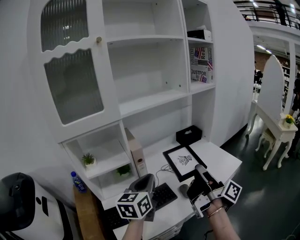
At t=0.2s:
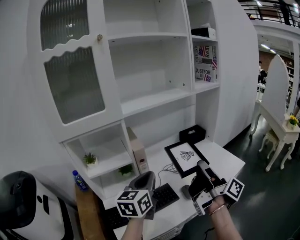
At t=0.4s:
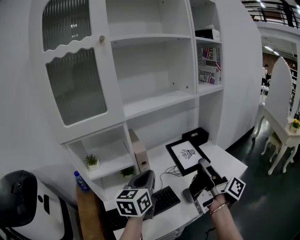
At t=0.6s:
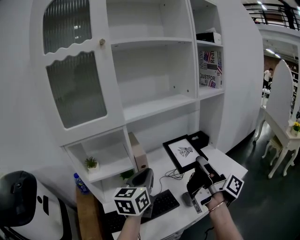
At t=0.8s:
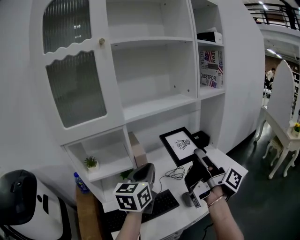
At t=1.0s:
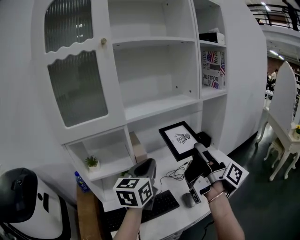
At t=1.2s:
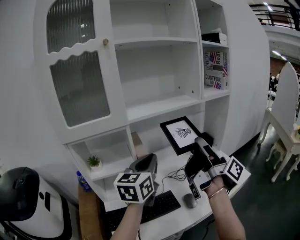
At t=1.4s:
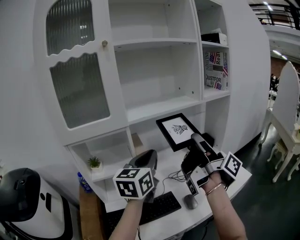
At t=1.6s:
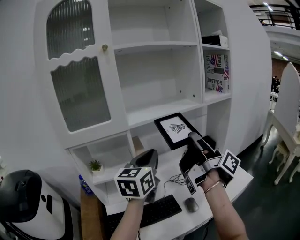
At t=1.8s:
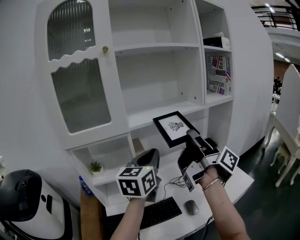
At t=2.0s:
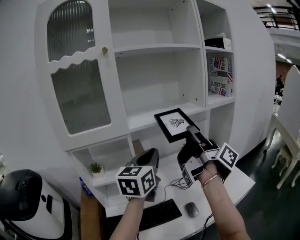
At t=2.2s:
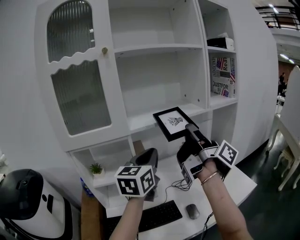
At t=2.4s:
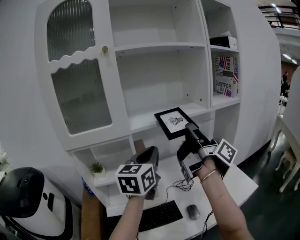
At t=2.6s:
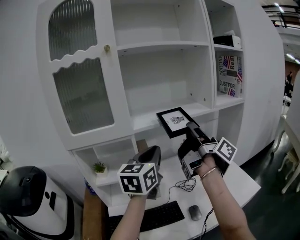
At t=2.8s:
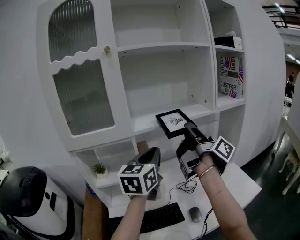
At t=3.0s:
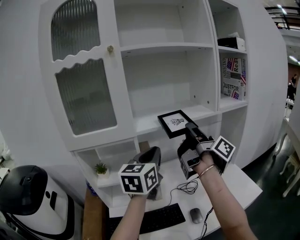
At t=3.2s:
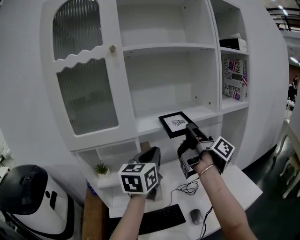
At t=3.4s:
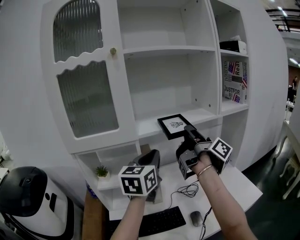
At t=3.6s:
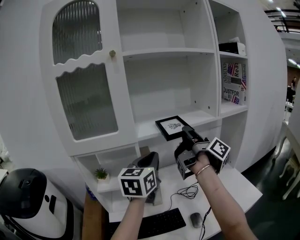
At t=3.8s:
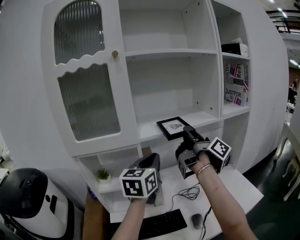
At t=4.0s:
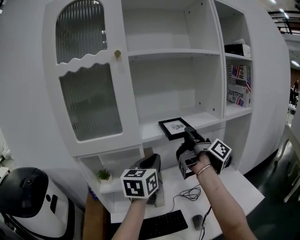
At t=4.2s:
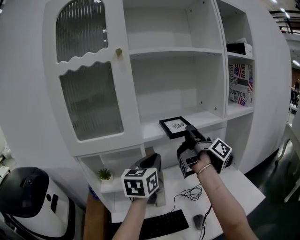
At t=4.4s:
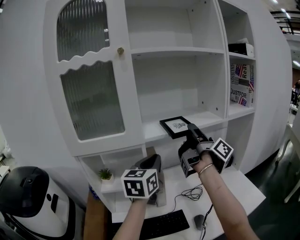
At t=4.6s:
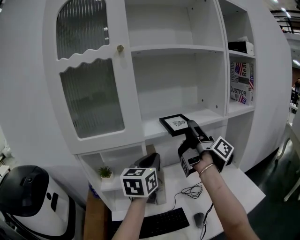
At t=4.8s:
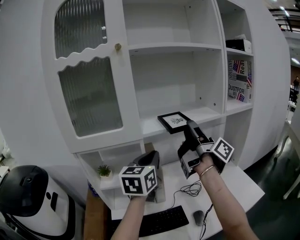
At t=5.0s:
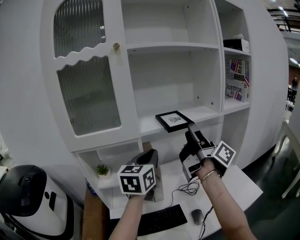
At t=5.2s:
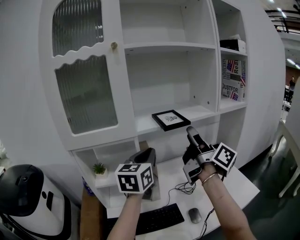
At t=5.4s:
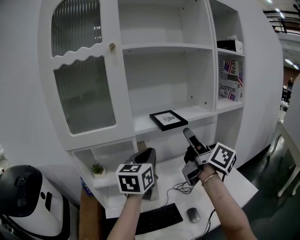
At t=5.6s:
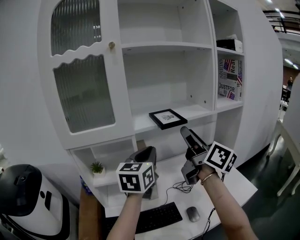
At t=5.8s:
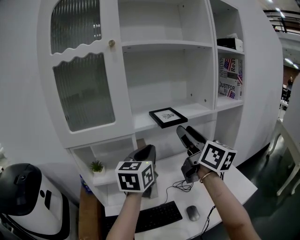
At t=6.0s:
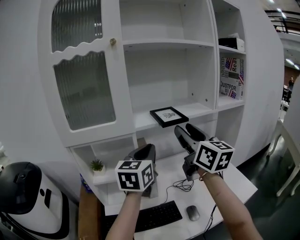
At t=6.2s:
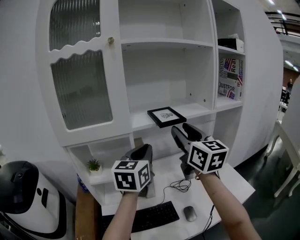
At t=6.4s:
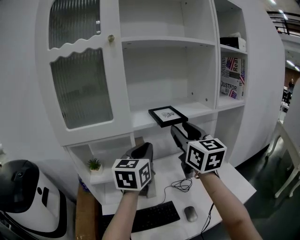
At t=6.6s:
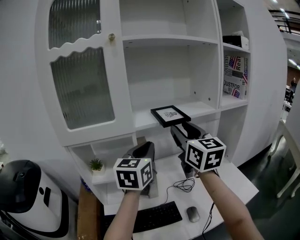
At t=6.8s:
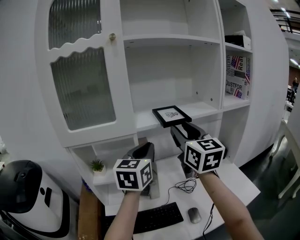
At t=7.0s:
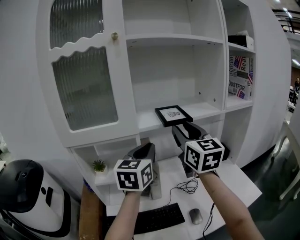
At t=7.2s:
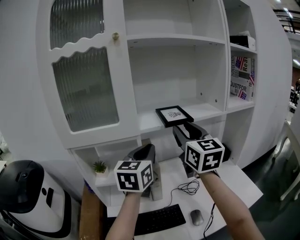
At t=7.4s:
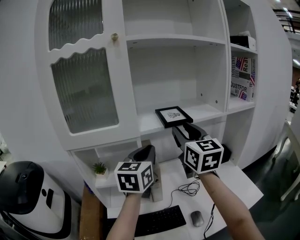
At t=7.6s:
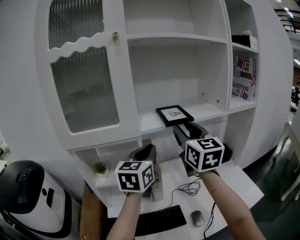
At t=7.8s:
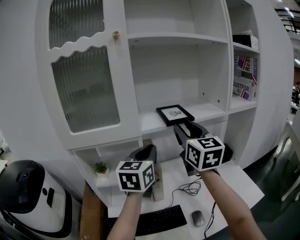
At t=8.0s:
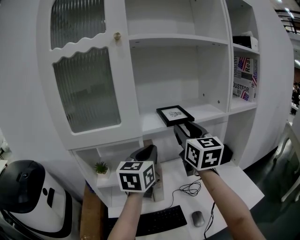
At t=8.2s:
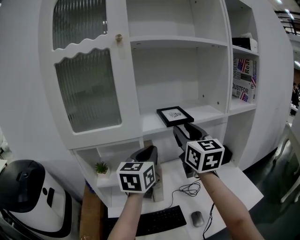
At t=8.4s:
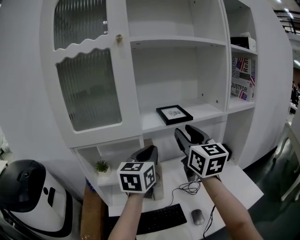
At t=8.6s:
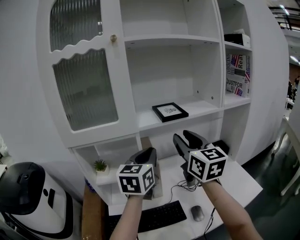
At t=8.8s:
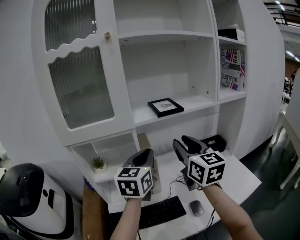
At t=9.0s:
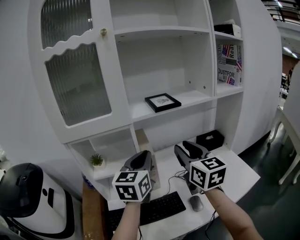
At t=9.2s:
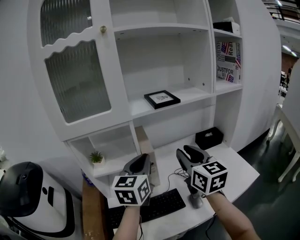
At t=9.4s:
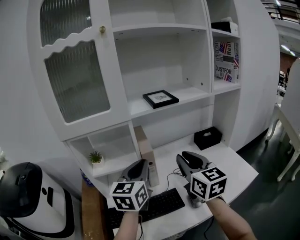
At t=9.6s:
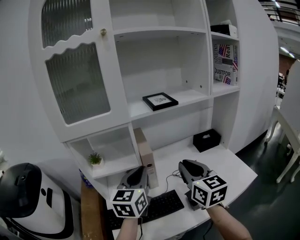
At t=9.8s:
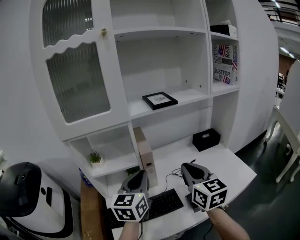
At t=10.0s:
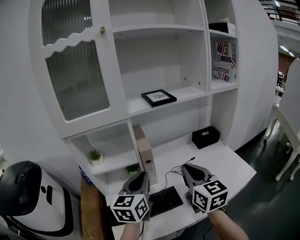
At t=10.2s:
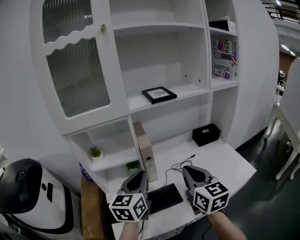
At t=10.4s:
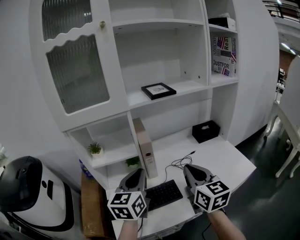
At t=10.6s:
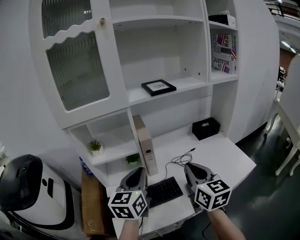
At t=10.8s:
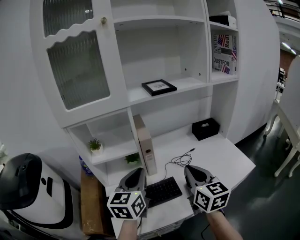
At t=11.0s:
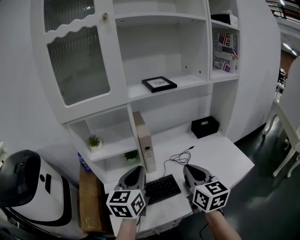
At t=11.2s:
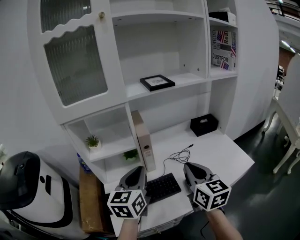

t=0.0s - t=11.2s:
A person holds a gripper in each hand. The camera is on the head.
t=0.0s - t=1.6s: Both grippers move upward and forward, some 15 cm.
t=1.6s - t=3.2s: The right gripper is displaced forward by approximately 10 cm. Meanwhile the left gripper heads forward, covering roughly 5 cm.
t=3.2s - t=4.8s: The right gripper opens up.
t=4.8s - t=6.4s: The right gripper rolls counterclockwise, seen from behind, by approximately 80 degrees.
t=6.4s - t=8.0s: The right gripper shifts approximately 5 cm forward.
t=8.0s - t=9.6s: The left gripper heads backward and downward, covering approximately 15 cm, while the right gripper shifts roughly 20 cm backward and downward, and closes its fingers.
t=9.6s - t=11.2s: The right gripper goes about 10 cm backward and downward, while the left gripper moves backward, some 5 cm.

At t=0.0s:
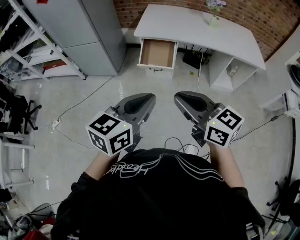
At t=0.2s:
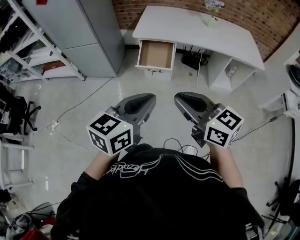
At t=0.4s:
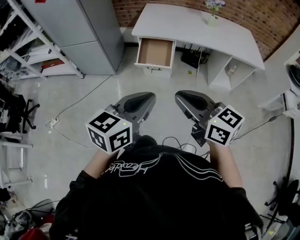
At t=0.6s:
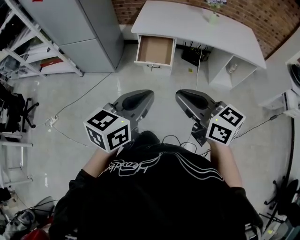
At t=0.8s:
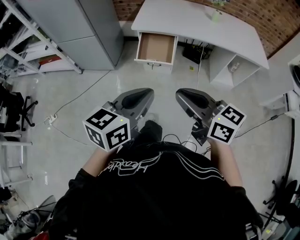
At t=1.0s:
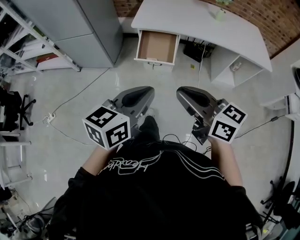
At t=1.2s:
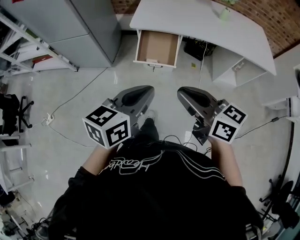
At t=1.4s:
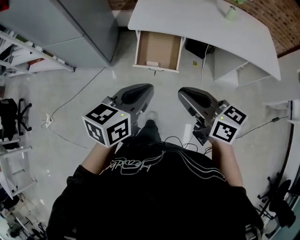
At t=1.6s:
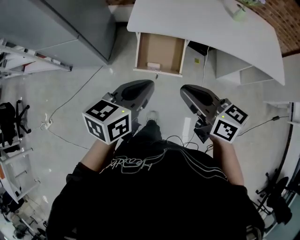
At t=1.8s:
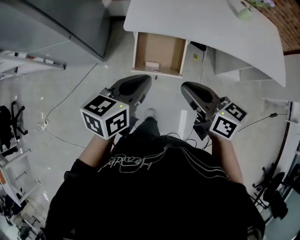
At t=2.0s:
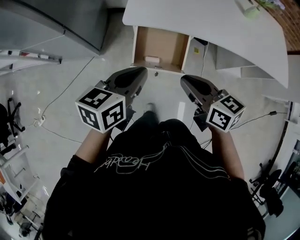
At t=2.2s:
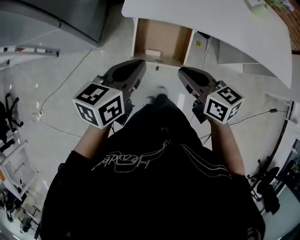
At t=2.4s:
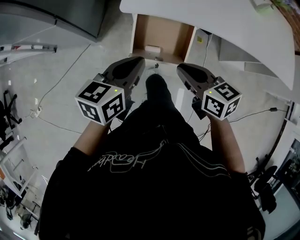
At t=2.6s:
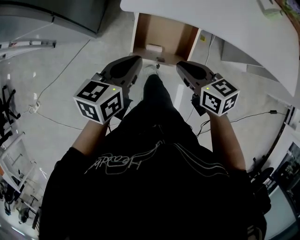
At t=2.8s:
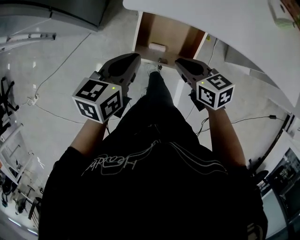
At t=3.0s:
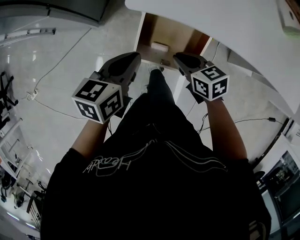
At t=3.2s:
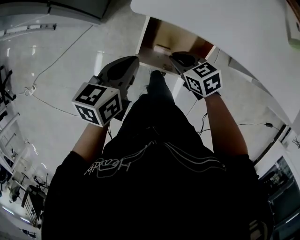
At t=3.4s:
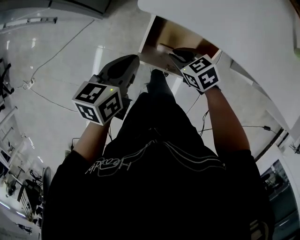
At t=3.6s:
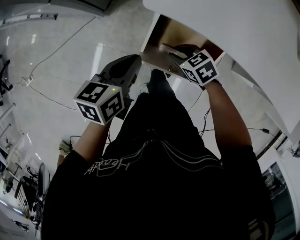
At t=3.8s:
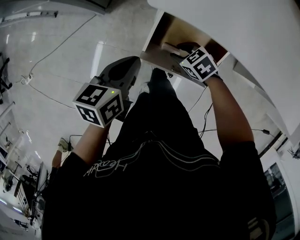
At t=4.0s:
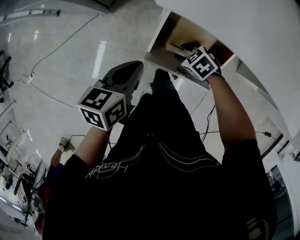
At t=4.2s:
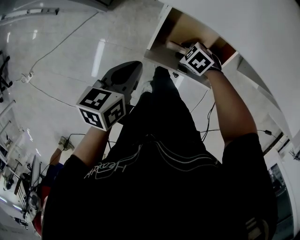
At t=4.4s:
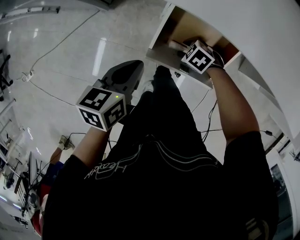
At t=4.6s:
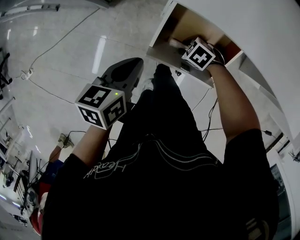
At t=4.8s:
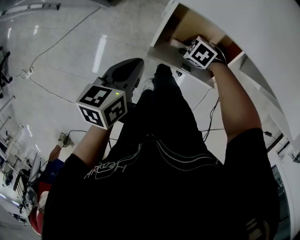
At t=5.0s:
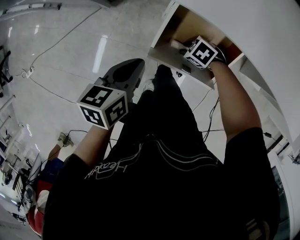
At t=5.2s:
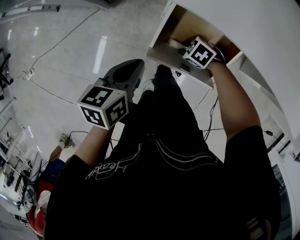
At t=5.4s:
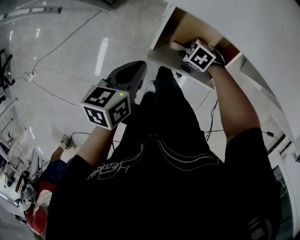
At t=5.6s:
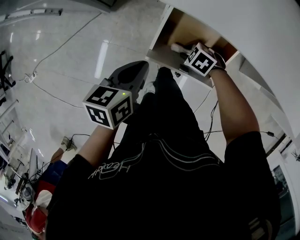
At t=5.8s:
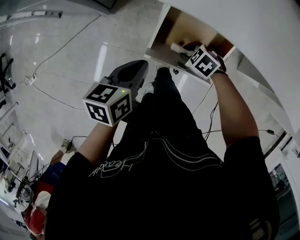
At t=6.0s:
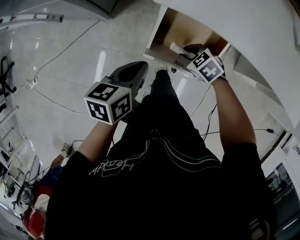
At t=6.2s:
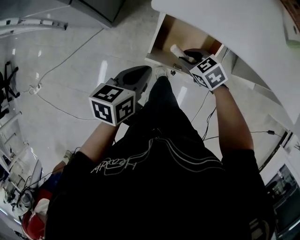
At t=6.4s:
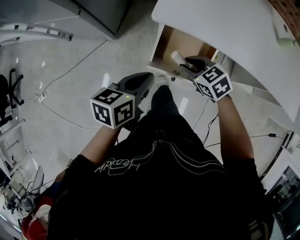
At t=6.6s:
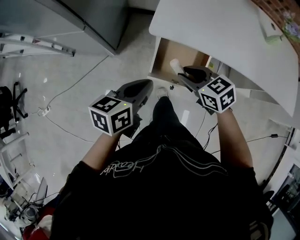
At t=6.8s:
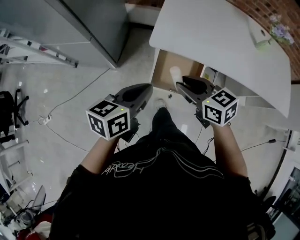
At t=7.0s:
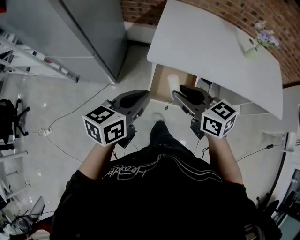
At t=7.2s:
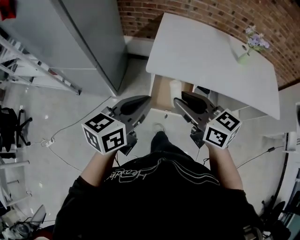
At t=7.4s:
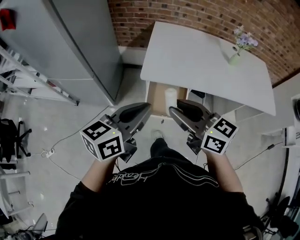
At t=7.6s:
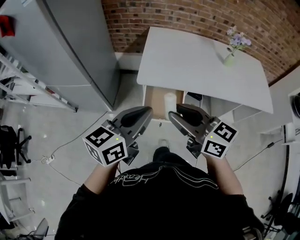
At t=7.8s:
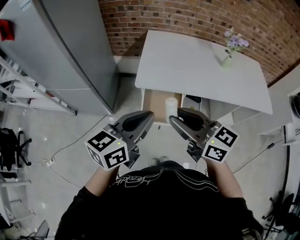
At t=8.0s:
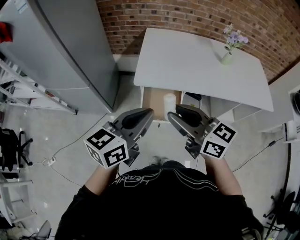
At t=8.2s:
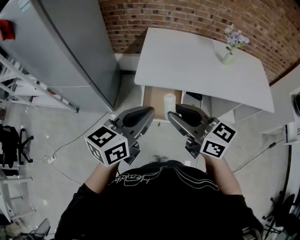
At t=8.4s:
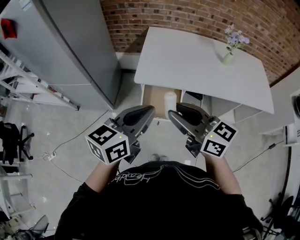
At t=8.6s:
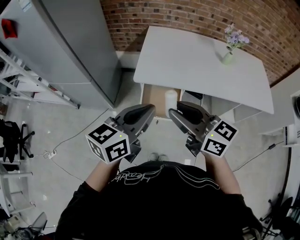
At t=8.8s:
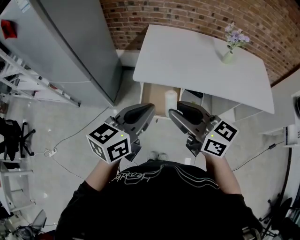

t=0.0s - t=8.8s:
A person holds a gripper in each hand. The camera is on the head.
t=0.0s - t=1.4s: The left gripper moves forward, approximately 35 cm, while the right gripper shifts some 35 cm forward and downward.
t=1.4s - t=3.0s: Both grippers travel together forward and downward, roughly 40 cm. The right gripper tips its fingers downward by some 30 degrees.
t=3.0s - t=4.4s: The left gripper is displaced downward by about 10 cm, while the right gripper heads downward, covering roughly 20 cm, rotates approximately 50 degrees, and opens up.
t=4.4s - t=5.8s: The right gripper moves upward, roughly 5 cm.
t=5.8s - t=7.4s: Both grippers move upward, approximately 50 cm. The right gripper angles its fingers upward, by approximately 60 degrees; the left gripper points its fingers some 30 degrees further upward.
t=7.4s - t=8.8s: Both grippers move to the right, approximately 10 cm.

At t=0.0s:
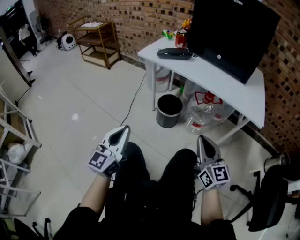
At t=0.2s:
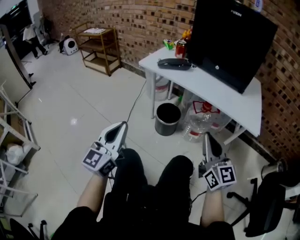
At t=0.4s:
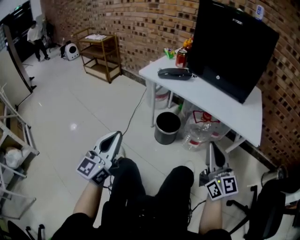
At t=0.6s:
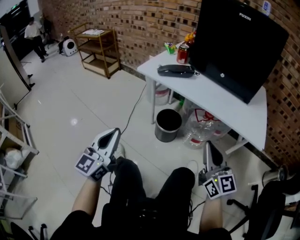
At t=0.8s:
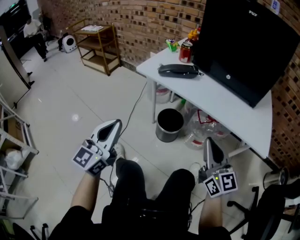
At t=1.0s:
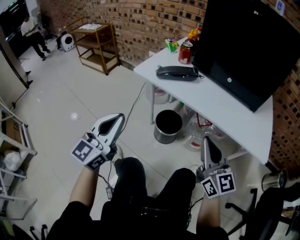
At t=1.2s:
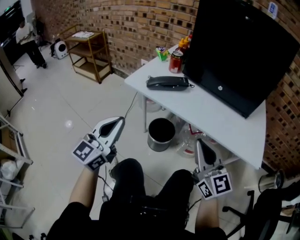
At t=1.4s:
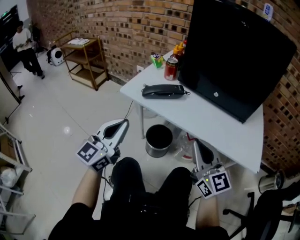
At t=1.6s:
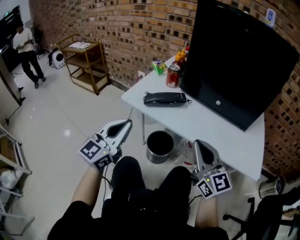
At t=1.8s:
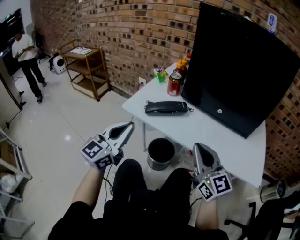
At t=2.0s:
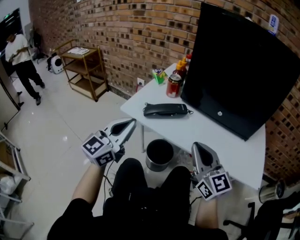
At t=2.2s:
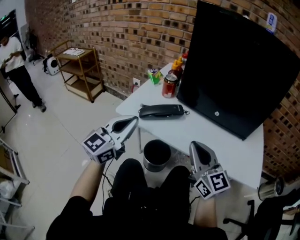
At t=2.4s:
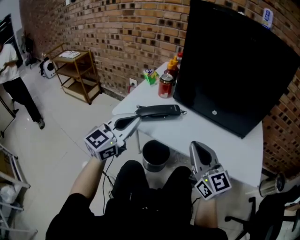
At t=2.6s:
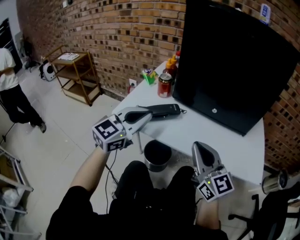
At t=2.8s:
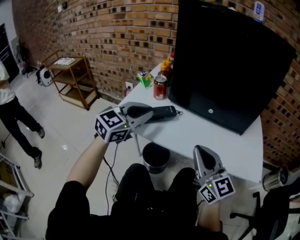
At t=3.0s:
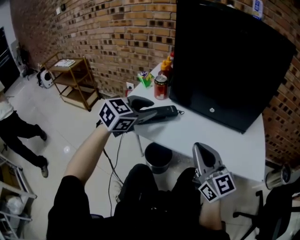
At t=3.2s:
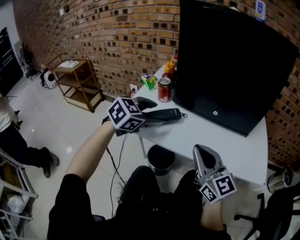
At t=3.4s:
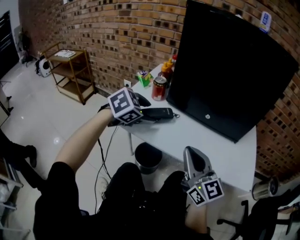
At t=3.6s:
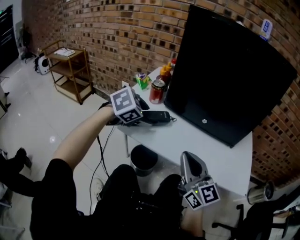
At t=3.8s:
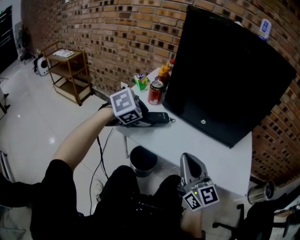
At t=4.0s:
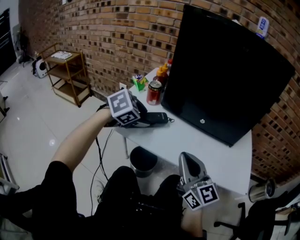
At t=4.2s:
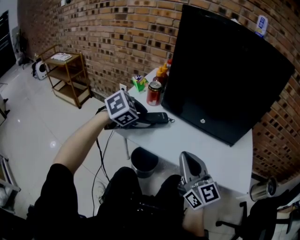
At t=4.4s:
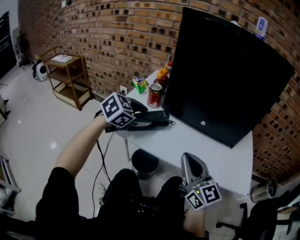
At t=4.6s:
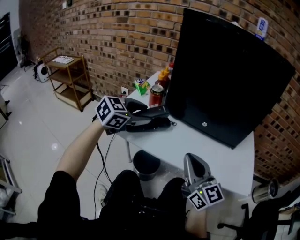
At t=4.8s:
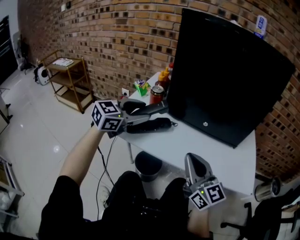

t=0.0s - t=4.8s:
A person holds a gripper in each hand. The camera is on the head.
t=0.0s - t=1.6s: The left gripper shifts roughly 25 cm forward. The right gripper goes approximately 25 cm forward and upward.
t=1.6s - t=3.2s: The right gripper ends up about 5 cm from where it was, while the left gripper heads forward and to the right, covering about 20 cm, points its fingers some 40 degrees further downward, and opens up.
t=3.2s - t=4.8s: The grippers stay close to where they were, moving slightly.
